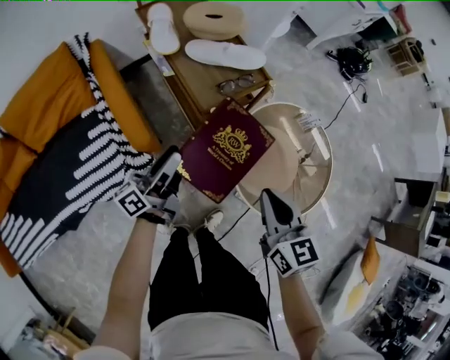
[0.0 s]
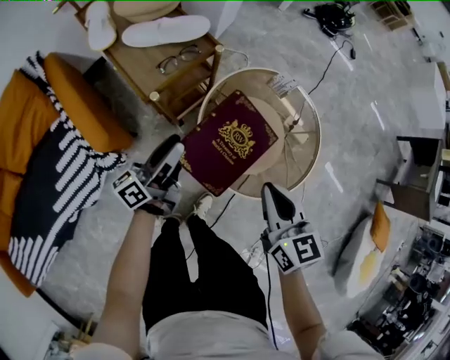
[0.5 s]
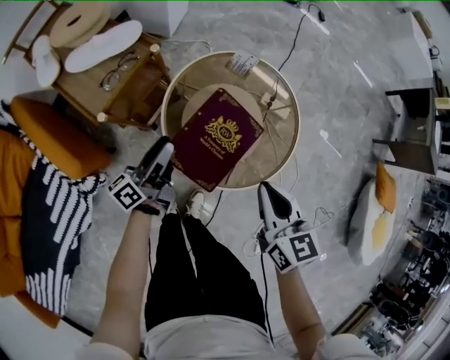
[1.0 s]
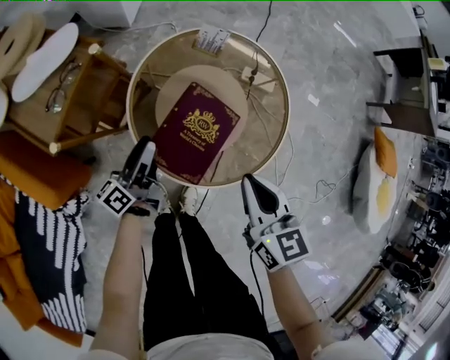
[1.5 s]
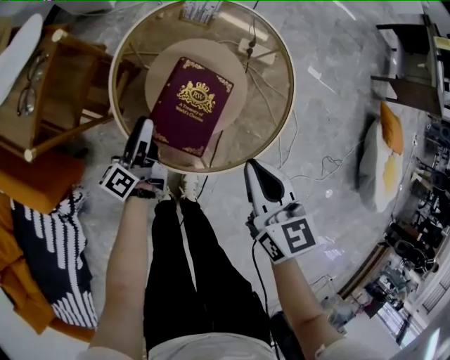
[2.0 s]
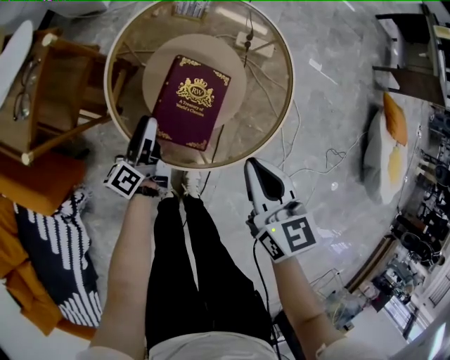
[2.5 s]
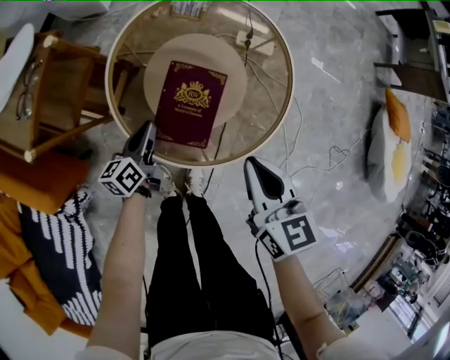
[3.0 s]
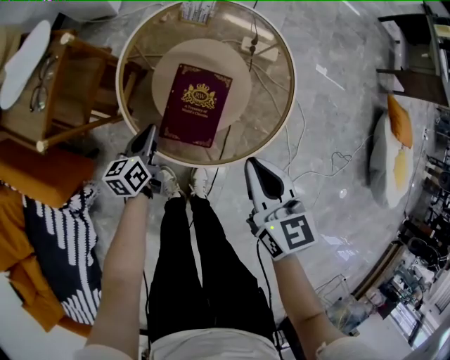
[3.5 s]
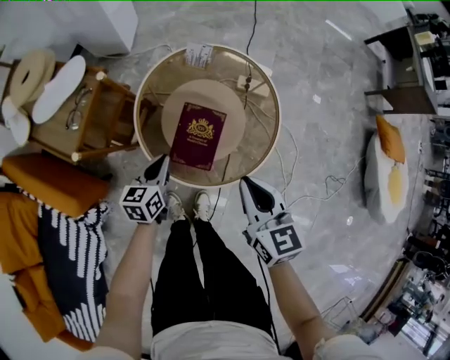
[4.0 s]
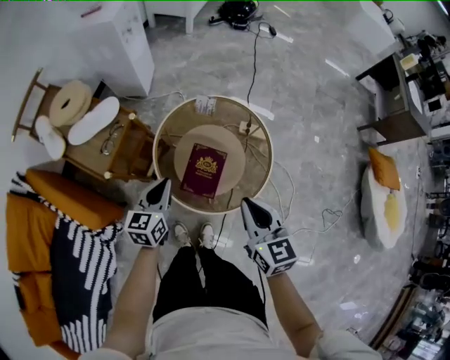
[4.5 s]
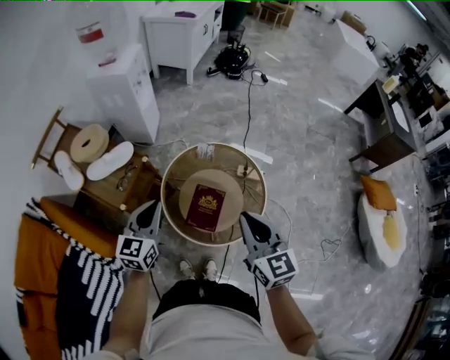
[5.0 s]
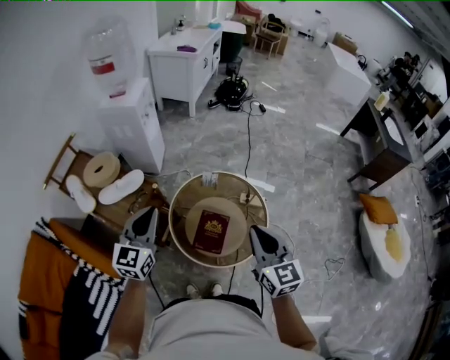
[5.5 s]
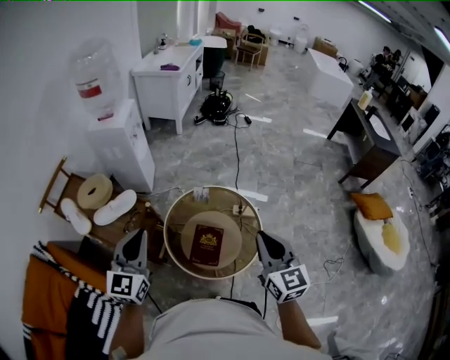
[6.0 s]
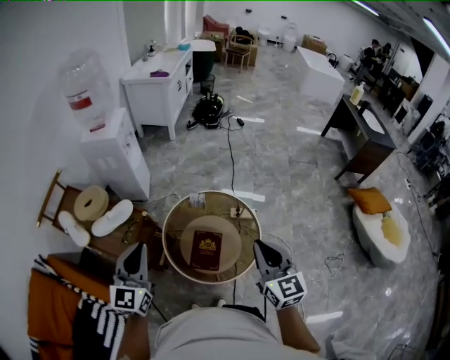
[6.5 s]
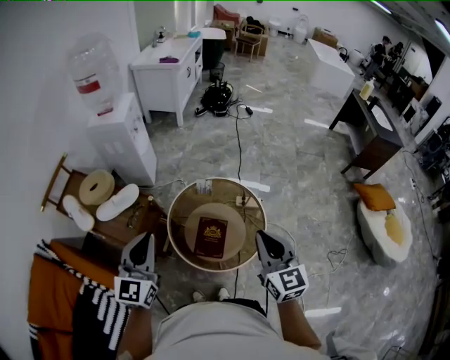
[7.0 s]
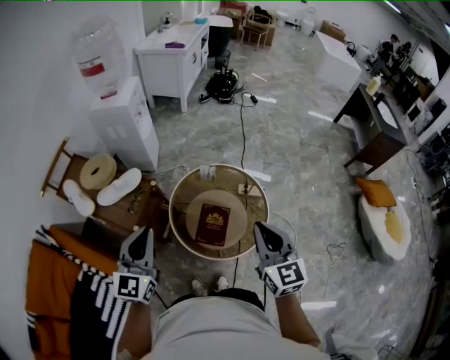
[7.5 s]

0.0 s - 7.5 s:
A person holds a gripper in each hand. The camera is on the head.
0.0 s - 2.0 s: The right gripper moves upward, backward and to the left, approximately 15 cm; the left gripper swings left and right, roughly 20 cm each way, with 2 reversals.
2.0 s - 4.0 s: The right gripper goes about 10 cm upward; the left gripper travels upward and backward by approximately 10 cm, turns by about 50 degrees, and closes.
4.0 s - 5.5 s: The left gripper moves upward and to the left, approximately 40 cm, and swivels about 40 degrees. Meanwhile the right gripper heads upward, covering about 25 cm, and swivels approximately 20 degrees.
5.5 s - 7.5 s: The left gripper travels backward by about 5 cm.

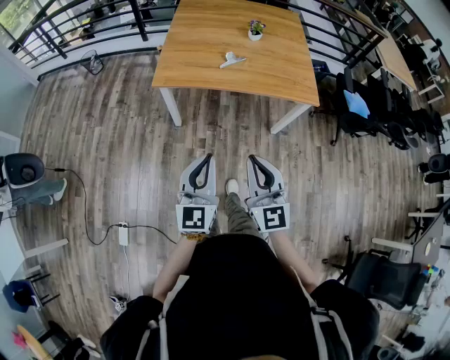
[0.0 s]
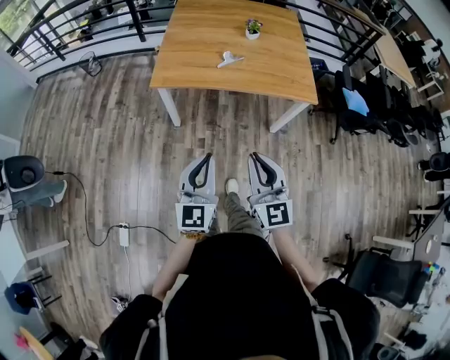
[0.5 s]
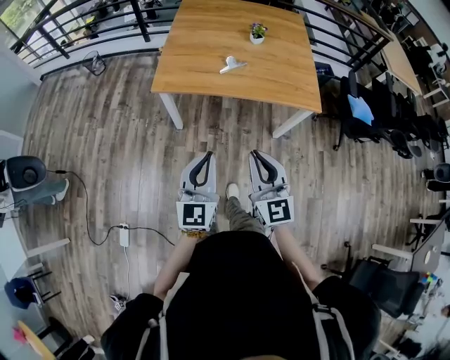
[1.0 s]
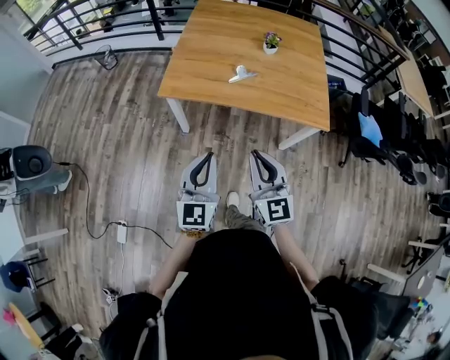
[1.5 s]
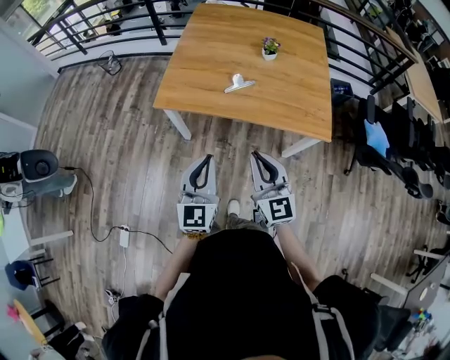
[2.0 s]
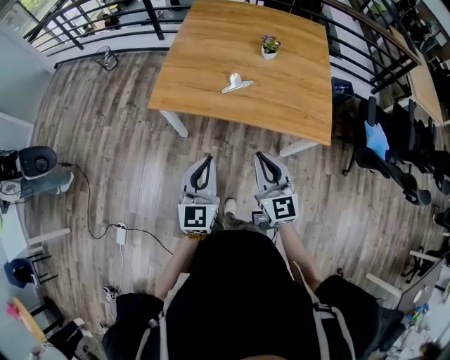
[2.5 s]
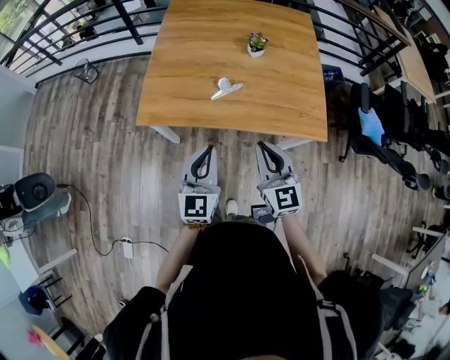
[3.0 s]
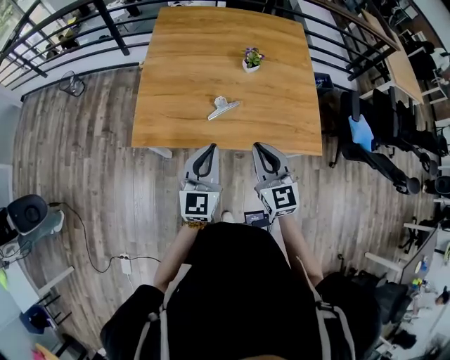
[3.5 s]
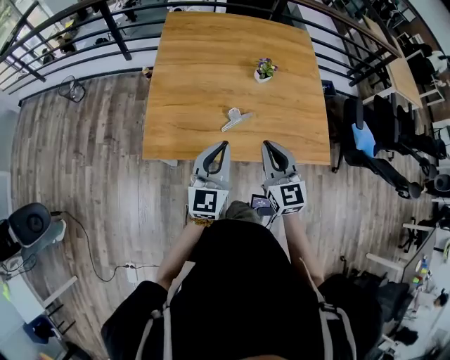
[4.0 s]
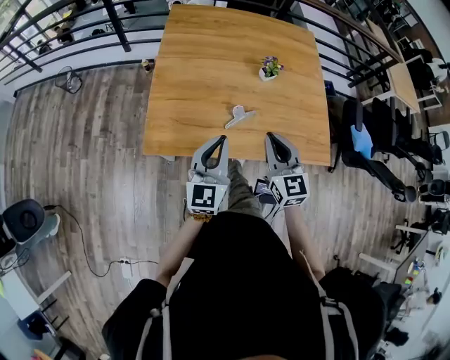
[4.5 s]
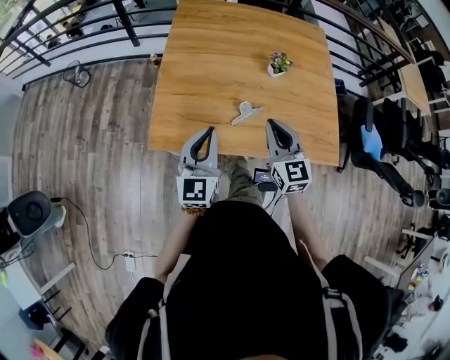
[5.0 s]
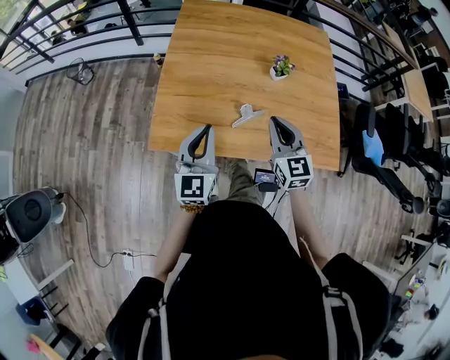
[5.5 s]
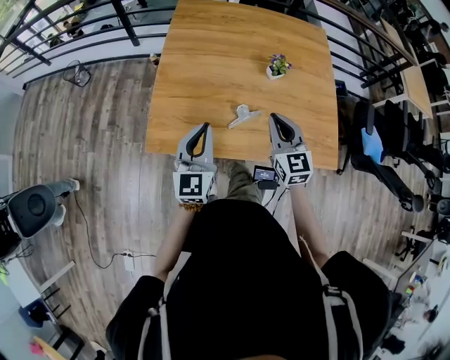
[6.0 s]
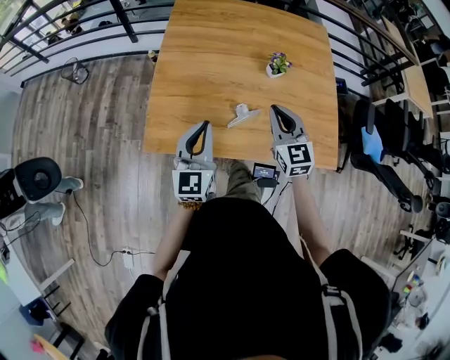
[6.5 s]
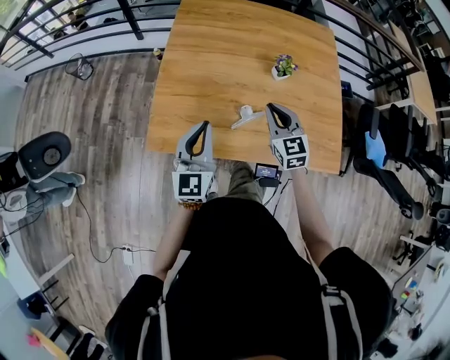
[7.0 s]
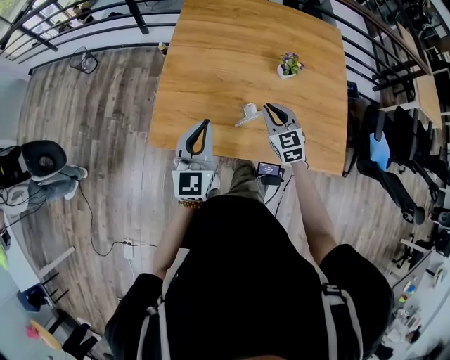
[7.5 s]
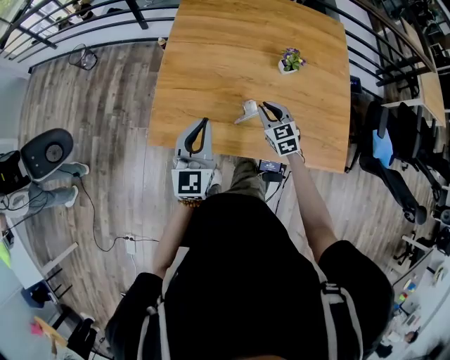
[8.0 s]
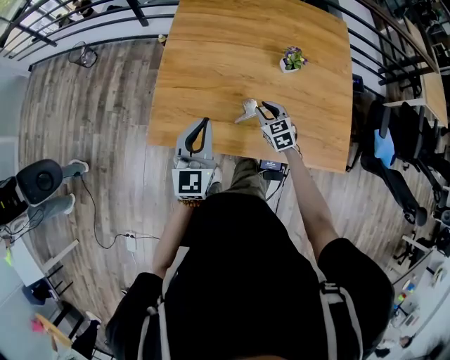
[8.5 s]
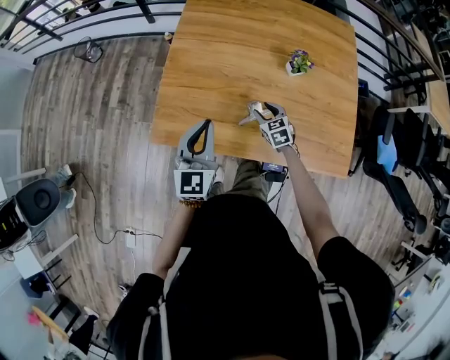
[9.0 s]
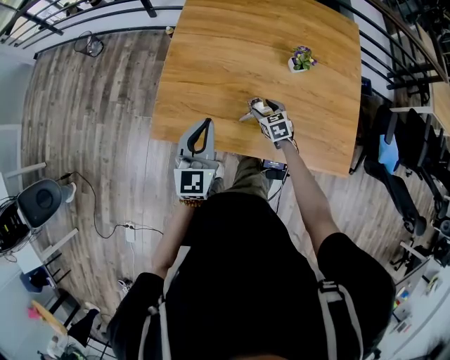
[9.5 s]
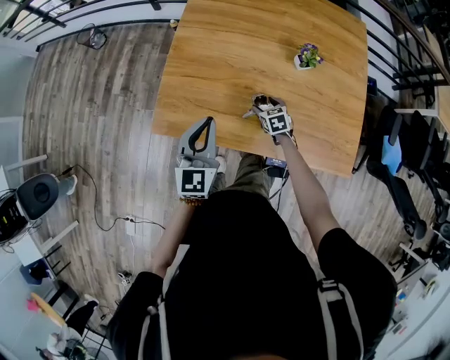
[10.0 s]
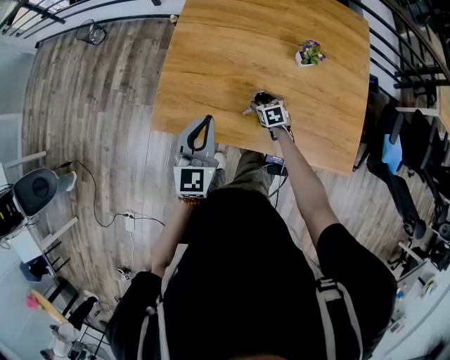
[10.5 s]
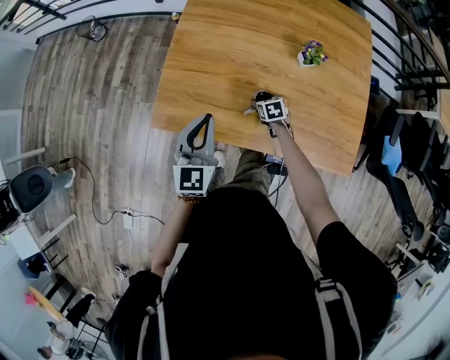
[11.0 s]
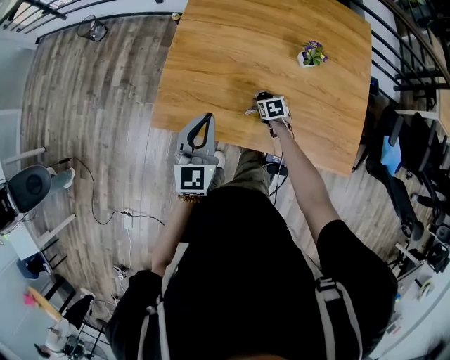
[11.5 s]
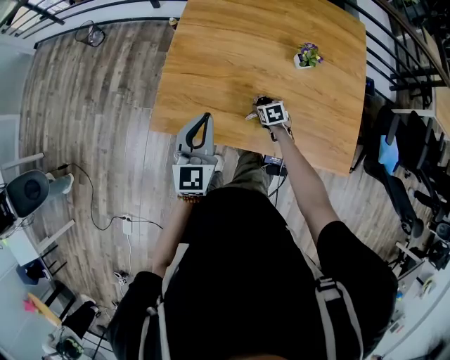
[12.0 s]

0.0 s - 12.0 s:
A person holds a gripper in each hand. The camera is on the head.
0.0 s - 2.0 s: Both grippers travel together forward and to the right, approximately 20 cm.
2.0 s - 4.0 s: Both grippers travel together forward, roughly 30 cm.
4.0 s - 6.0 s: The right gripper moves forward, roughly 10 cm, while the left gripper shifts some 10 cm forward and to the left.
6.0 s - 8.0 s: The right gripper shifts about 20 cm downward and forward, and swivels some 20 degrees.
8.0 s - 10.0 s: The right gripper travels downward by about 15 cm, swivels approximately 20 degrees, and opens its fingers.
10.0 s - 12.0 s: The grippers make only small movements.

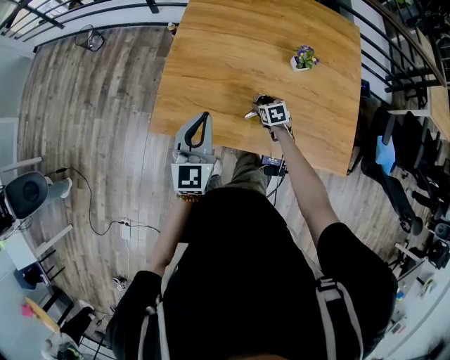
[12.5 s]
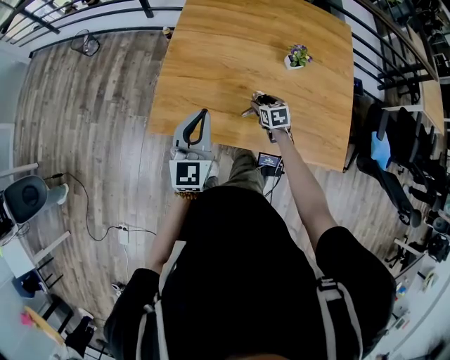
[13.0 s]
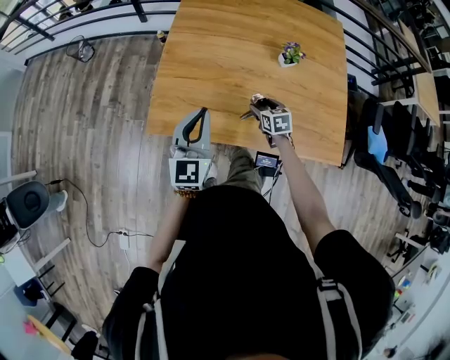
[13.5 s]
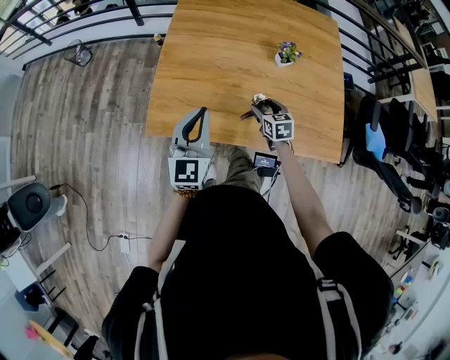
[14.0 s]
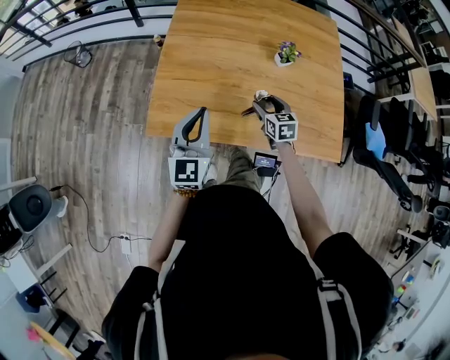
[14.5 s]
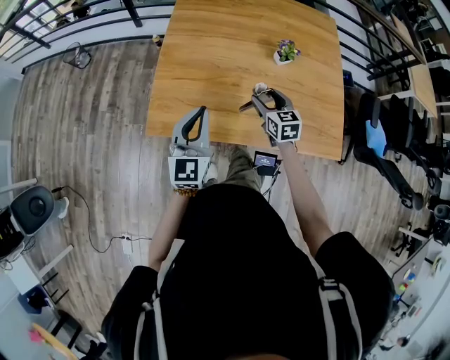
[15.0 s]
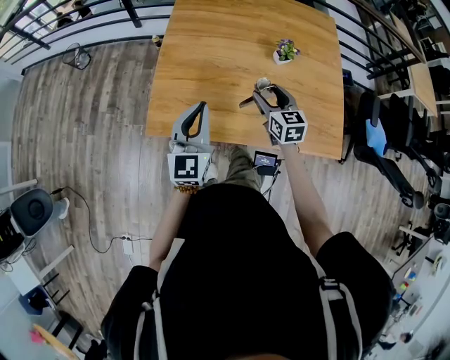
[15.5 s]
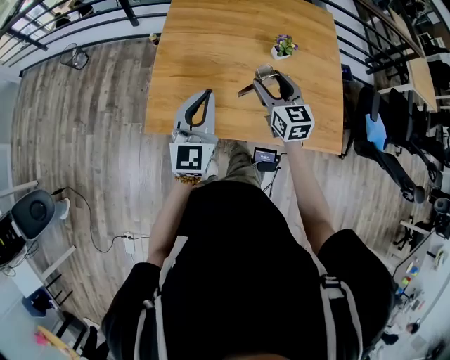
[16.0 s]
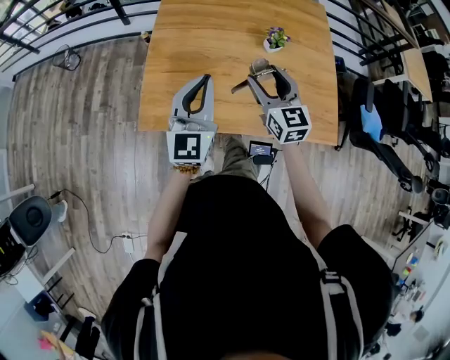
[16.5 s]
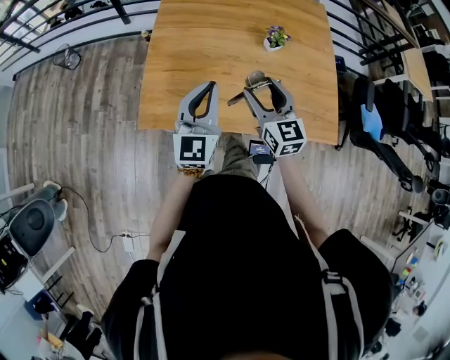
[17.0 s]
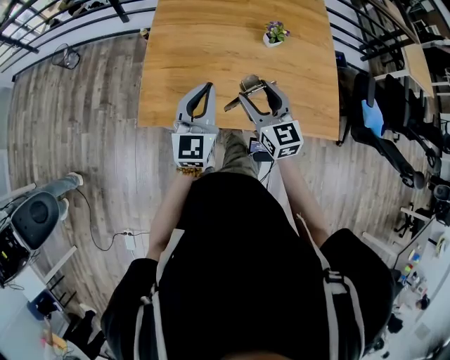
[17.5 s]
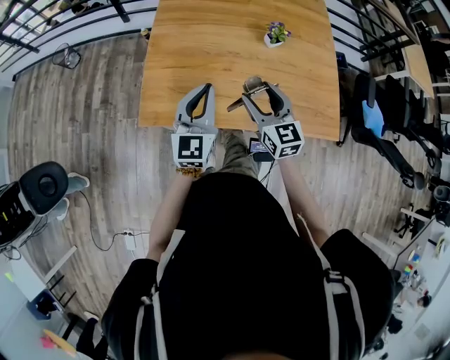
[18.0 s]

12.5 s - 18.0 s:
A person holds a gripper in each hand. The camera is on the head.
12.5 s - 14.5 s: The right gripper travels upward by approximately 15 cm, and swivels approximately 20 degrees.
14.5 s - 16.0 s: The right gripper heads upward, covering approximately 15 cm, and turns by roughly 20 degrees.
16.0 s - 18.0 s: The right gripper is displaced backward by some 10 cm.

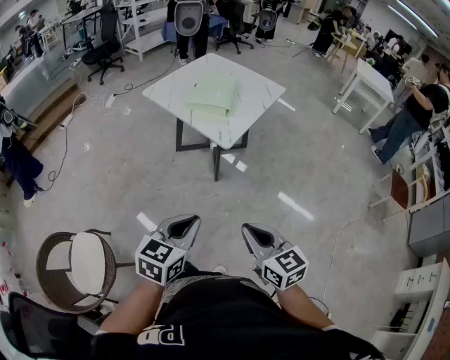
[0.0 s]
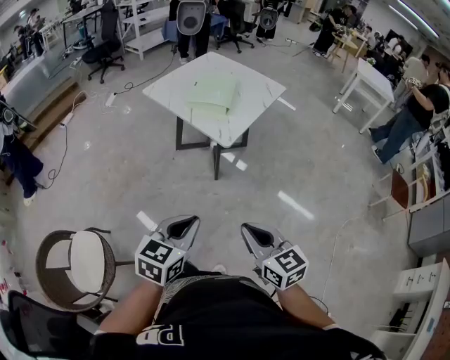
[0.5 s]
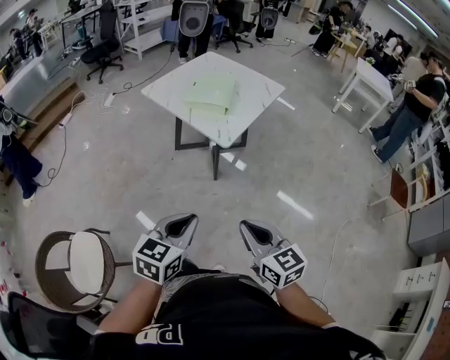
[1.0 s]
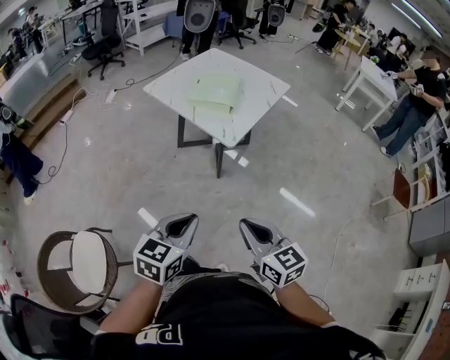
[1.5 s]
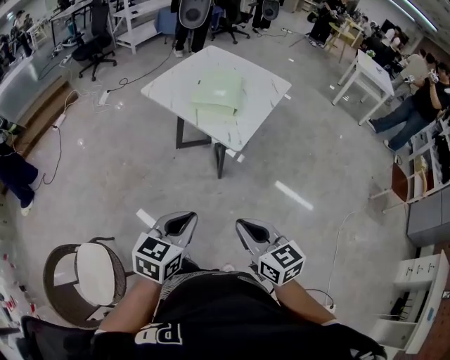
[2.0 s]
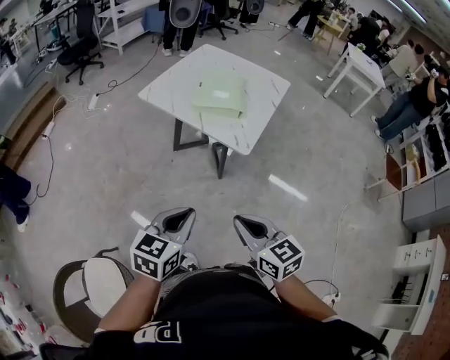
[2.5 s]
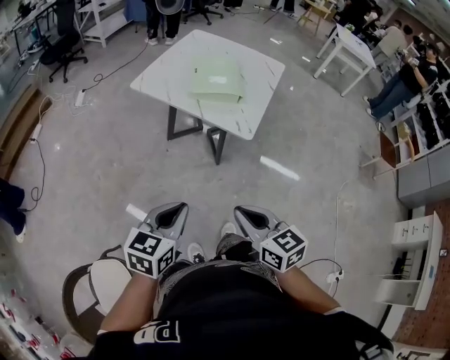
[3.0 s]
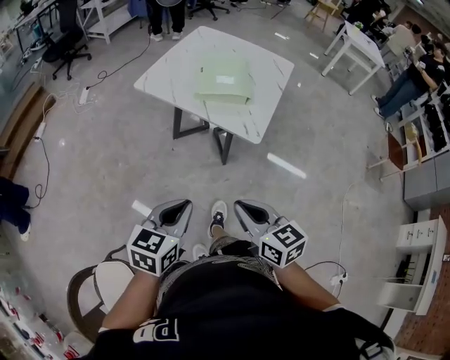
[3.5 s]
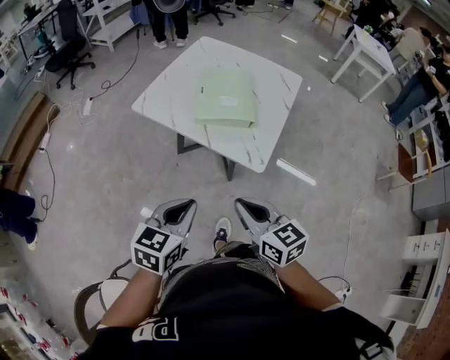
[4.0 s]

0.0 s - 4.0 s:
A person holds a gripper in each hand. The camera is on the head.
0.0 s - 2.0 s: Both grippers travel together to the left and forward, some 10 cm.
2.0 s - 4.0 s: The grippers both shift forward and to the left by some 25 cm.
